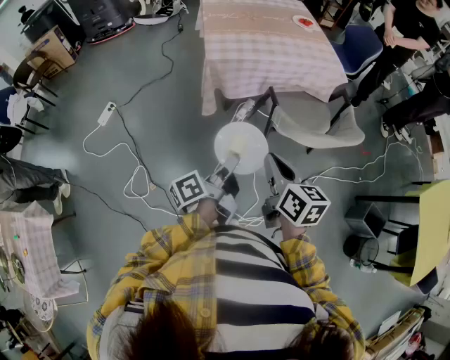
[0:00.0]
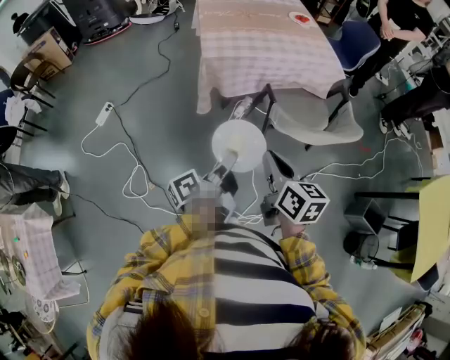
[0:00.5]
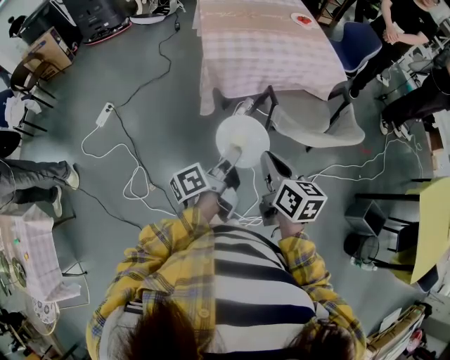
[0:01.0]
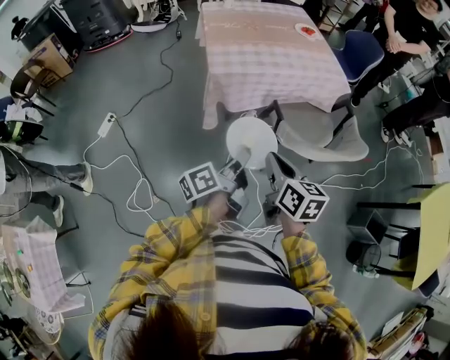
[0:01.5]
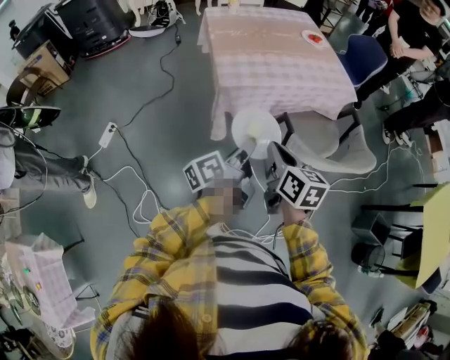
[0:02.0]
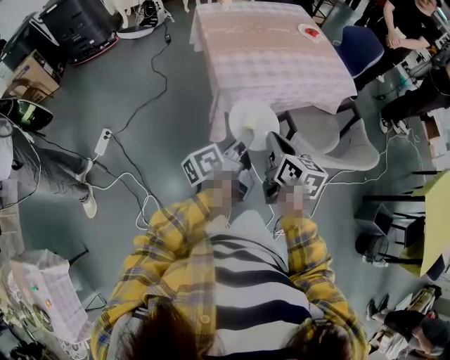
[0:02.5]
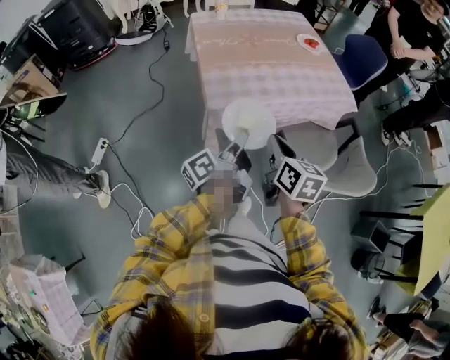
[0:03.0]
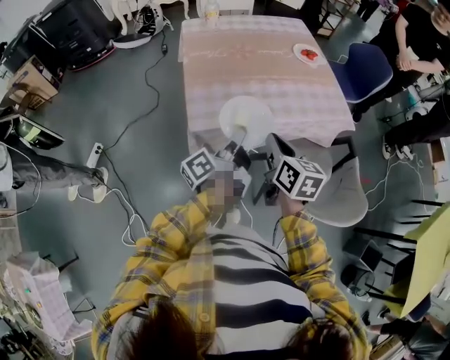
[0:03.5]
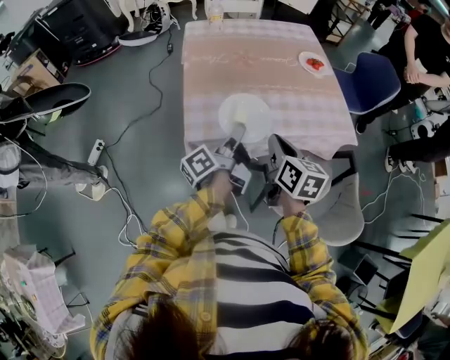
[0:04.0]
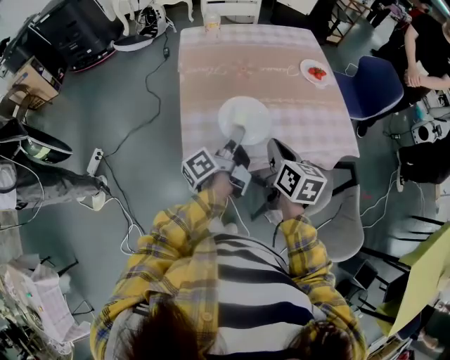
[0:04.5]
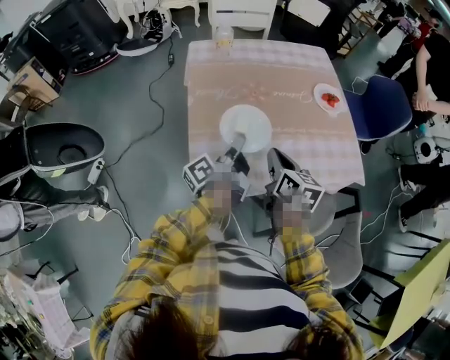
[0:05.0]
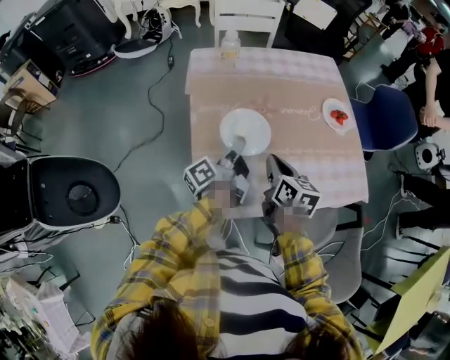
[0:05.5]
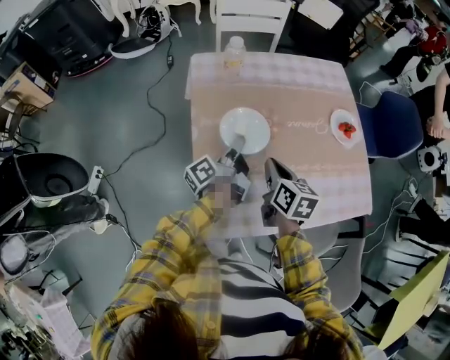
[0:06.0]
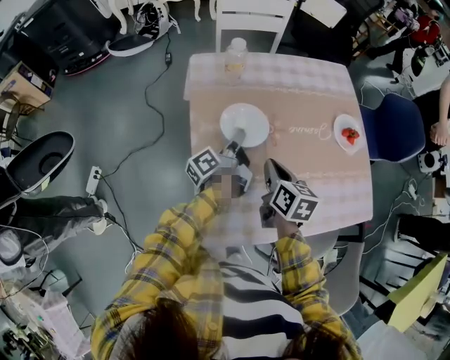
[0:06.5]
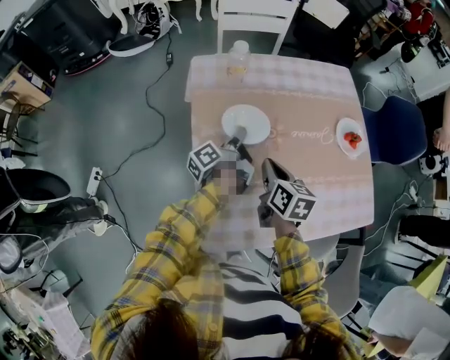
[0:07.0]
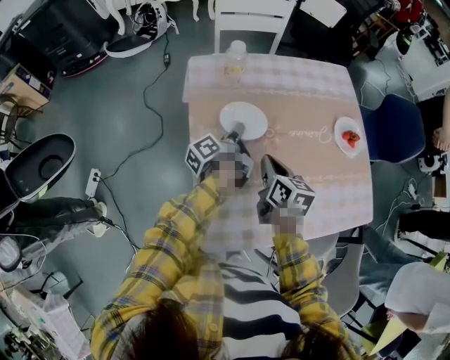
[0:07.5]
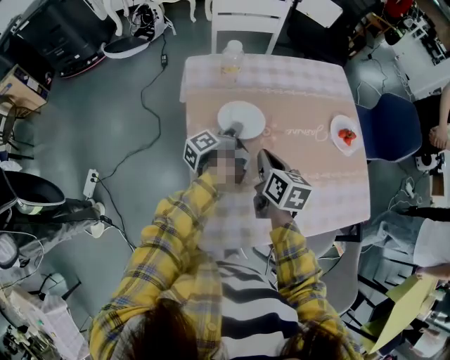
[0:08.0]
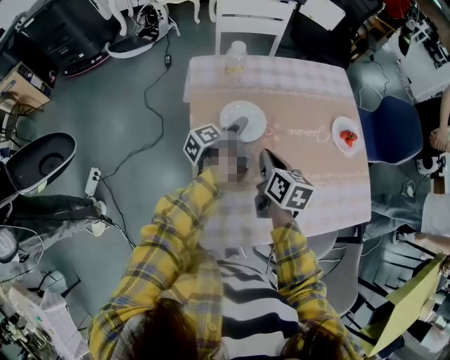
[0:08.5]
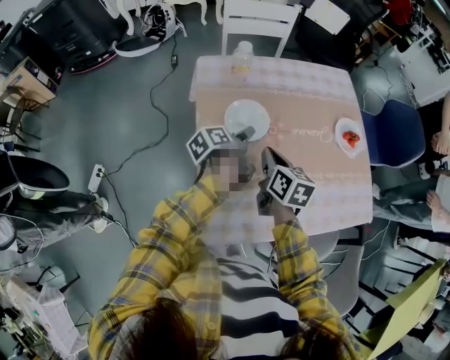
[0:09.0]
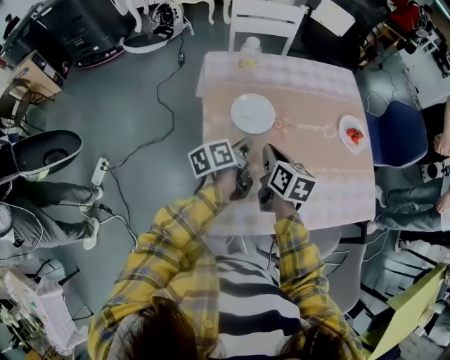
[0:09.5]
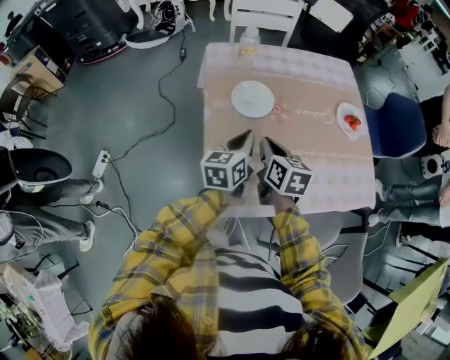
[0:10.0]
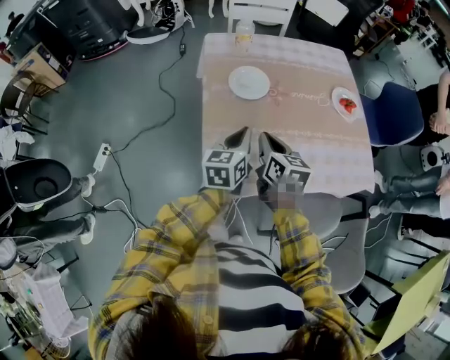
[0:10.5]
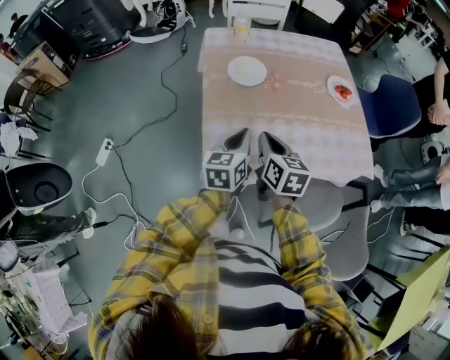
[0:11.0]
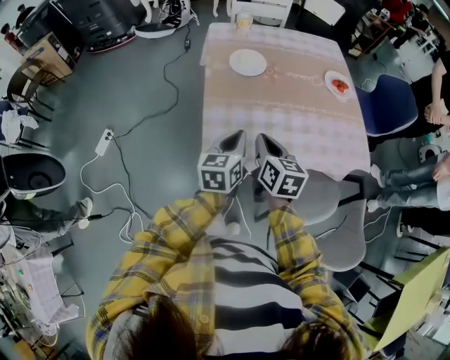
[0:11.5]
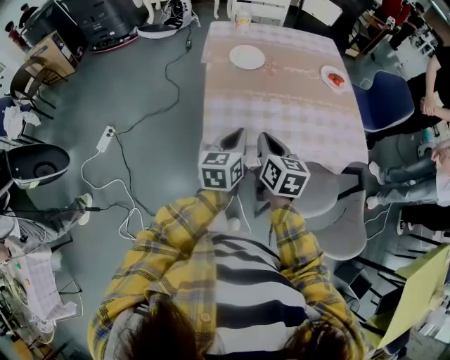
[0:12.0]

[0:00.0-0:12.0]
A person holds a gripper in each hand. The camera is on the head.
0:00.0 to 0:02.0: The right gripper shifts by roughly 15 cm.
0:02.0 to 0:04.0: The right gripper ends up roughly 30 cm from where it was.
0:04.0 to 0:06.0: The right gripper changes place by approximately 30 cm.
0:06.0 to 0:08.0: The right gripper ends up some 5 cm from where it was.
0:08.0 to 0:10.0: The right gripper moves roughly 5 cm.
0:10.0 to 0:12.0: The right gripper shifts by roughly 25 cm.

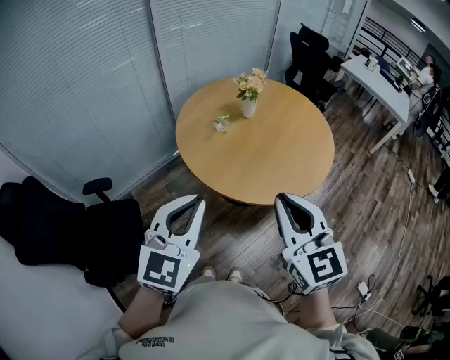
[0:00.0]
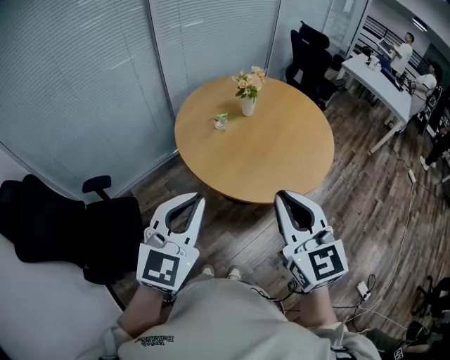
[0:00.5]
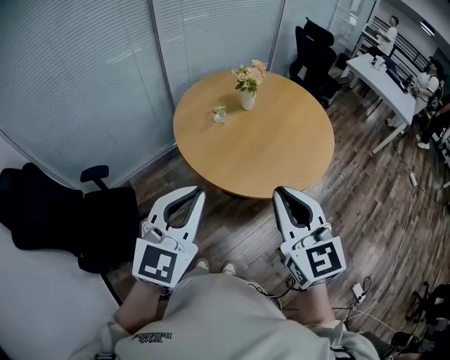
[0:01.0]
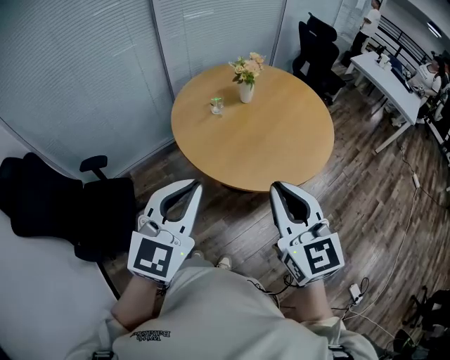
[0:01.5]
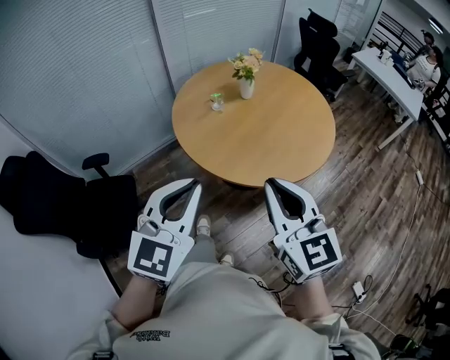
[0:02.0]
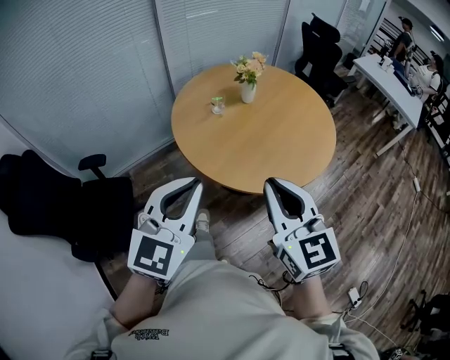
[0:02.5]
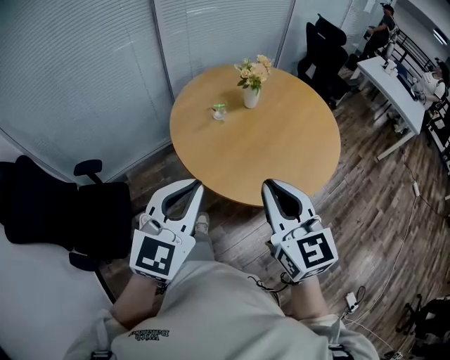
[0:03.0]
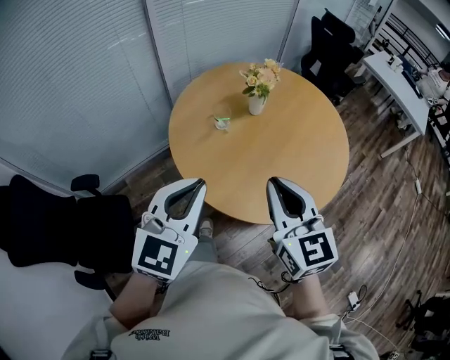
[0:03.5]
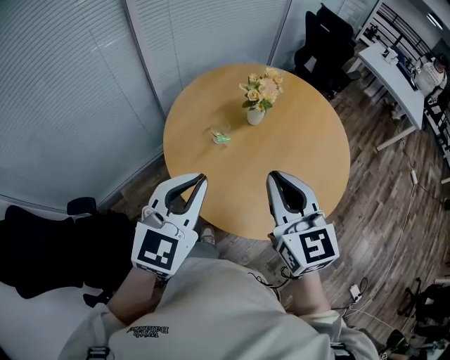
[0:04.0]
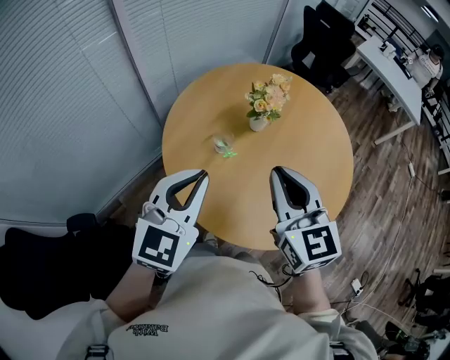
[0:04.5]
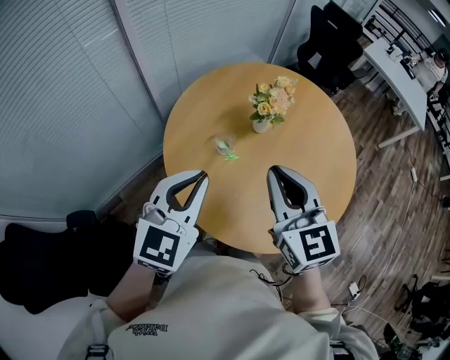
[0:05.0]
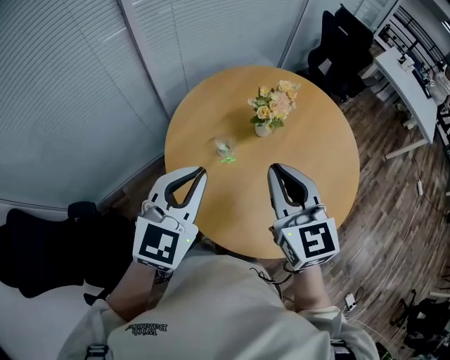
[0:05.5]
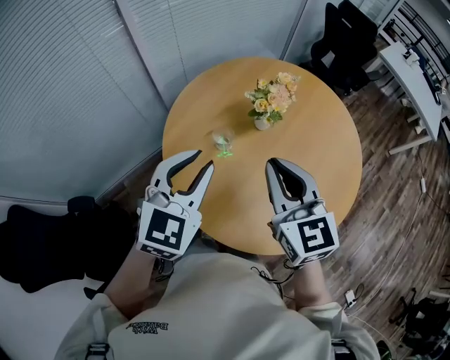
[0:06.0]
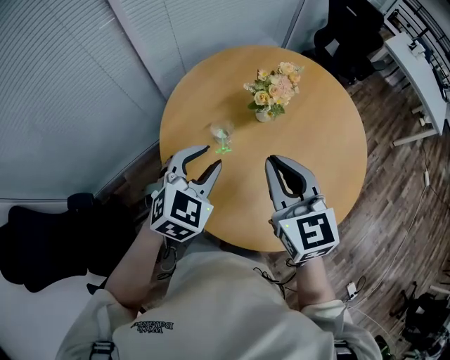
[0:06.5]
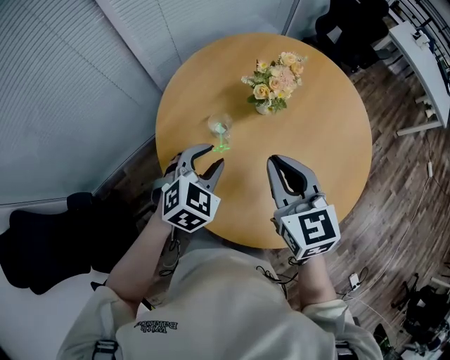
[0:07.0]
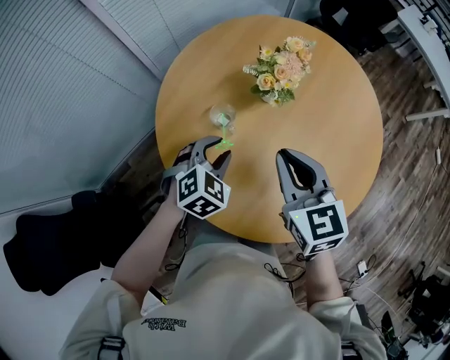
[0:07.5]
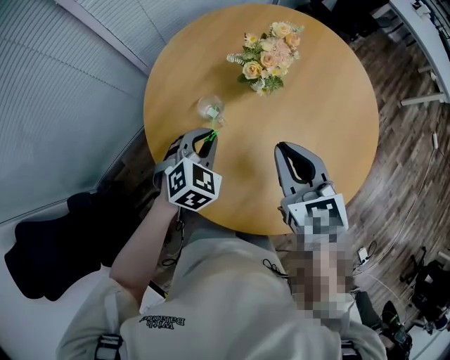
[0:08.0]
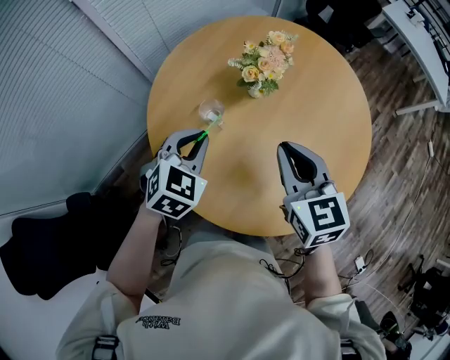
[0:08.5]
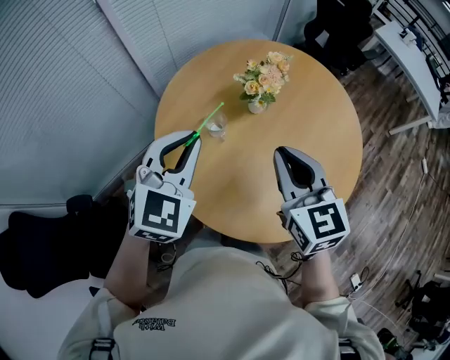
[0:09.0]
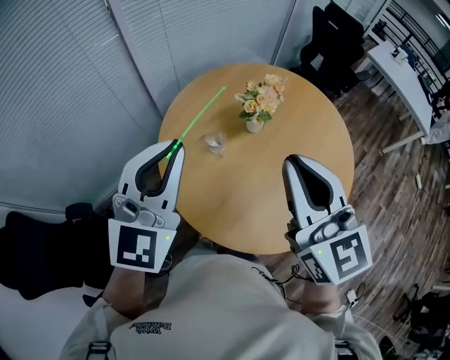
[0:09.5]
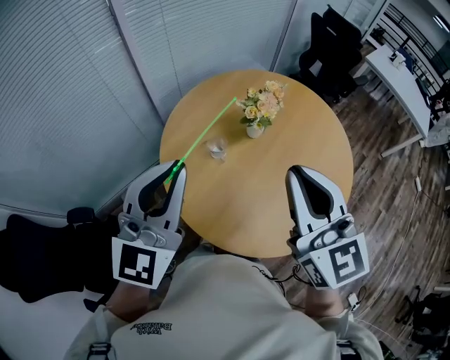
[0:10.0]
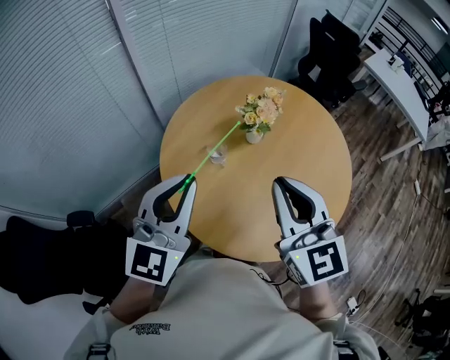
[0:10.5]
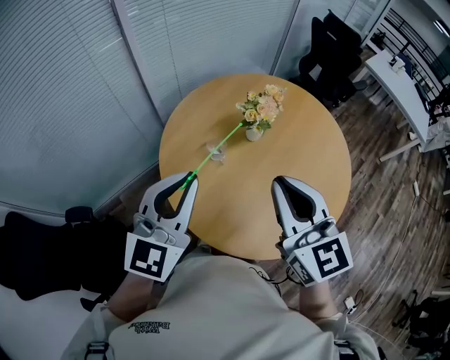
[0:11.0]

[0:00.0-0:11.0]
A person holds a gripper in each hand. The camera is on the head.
0:00.0 to 0:02.0: The grippers both shift to the right by about 5 cm.
0:02.0 to 0:03.5: The two grippers go approximately 20 cm forward.
0:03.5 to 0:05.5: The grippers both shift forward by approximately 20 cm.
0:05.5 to 0:07.5: The right gripper shifts about 15 cm downward and forward, while the left gripper travels downward by some 25 cm, tips its fingers downward by about 30 degrees, and opens up.
0:07.5 to 0:09.0: The right gripper moves upward, roughly 10 cm. The left gripper heads upward, covering some 20 cm, changes its angle by some 30 degrees, and closes.
0:09.0 to 0:11.0: The right gripper travels upward and backward by approximately 10 cm. The left gripper travels backward and upward by about 10 cm, and rotates some 30 degrees.

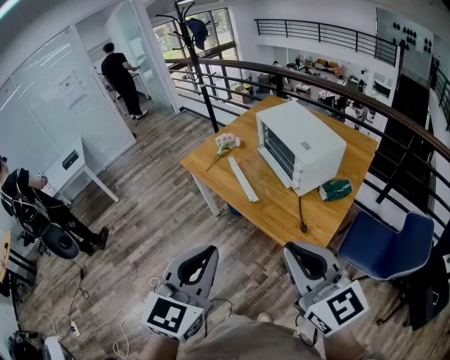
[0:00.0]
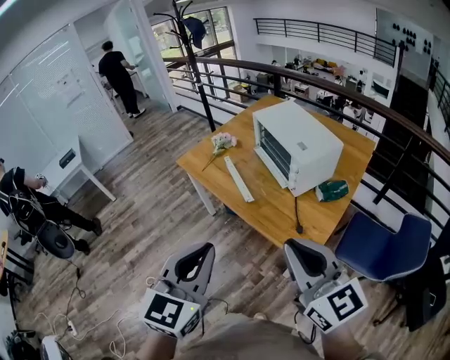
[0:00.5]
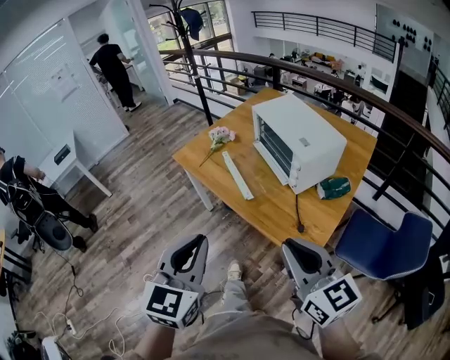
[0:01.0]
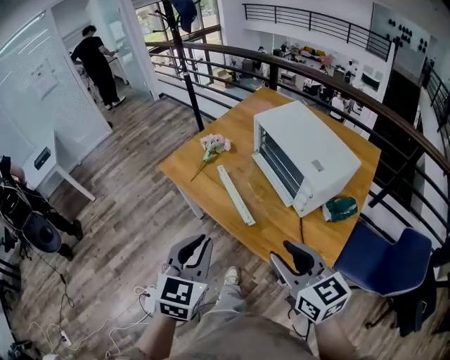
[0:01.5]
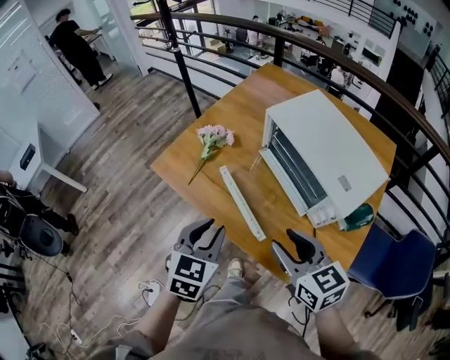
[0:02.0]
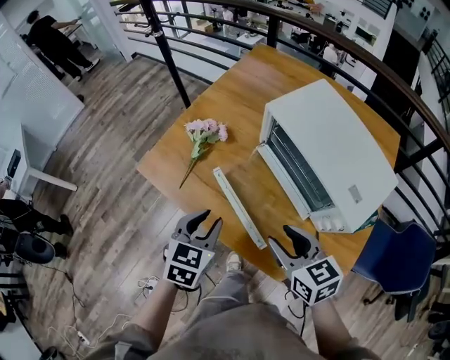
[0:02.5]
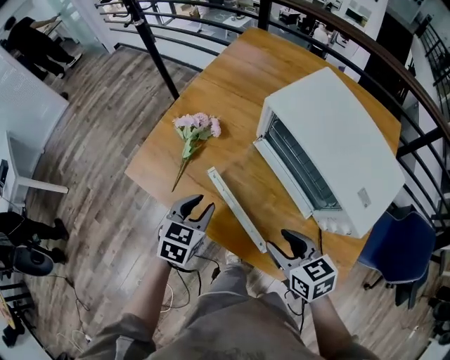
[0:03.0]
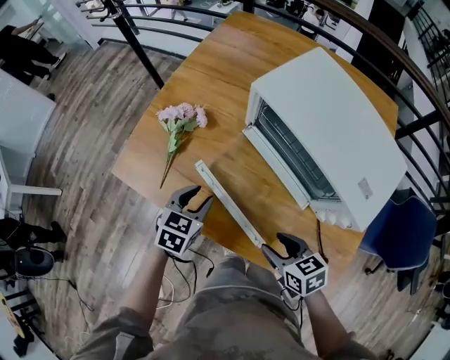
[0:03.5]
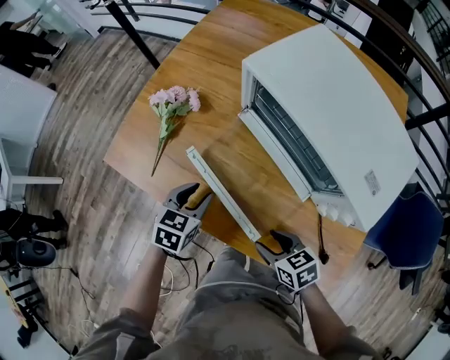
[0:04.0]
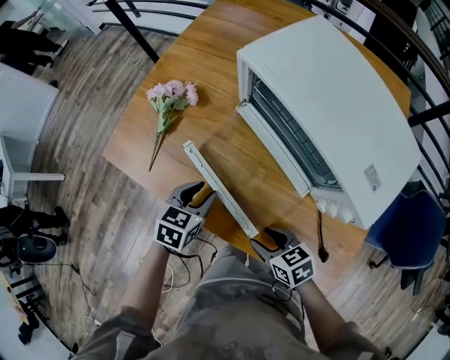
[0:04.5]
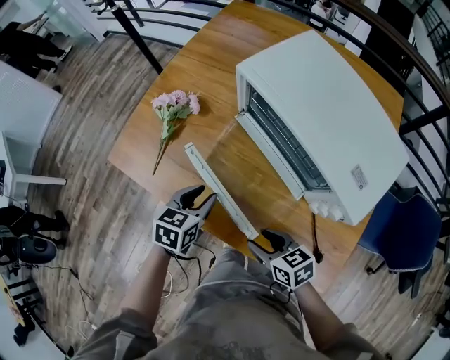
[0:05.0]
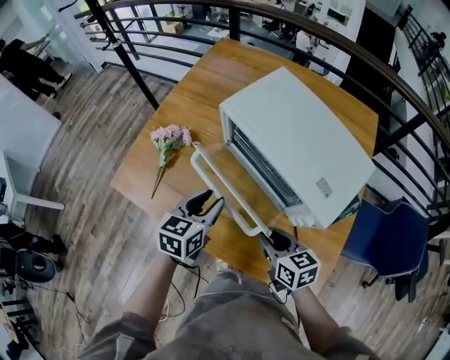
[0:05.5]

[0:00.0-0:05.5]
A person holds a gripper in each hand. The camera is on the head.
0:00.0 to 0:02.0: Both grippers move forward and downward, some 40 cm. The left gripper rotates approximately 20 degrees, and opens its fingers, while the right gripper swivels some 30 degrees, and opens up.
0:02.0 to 0:03.5: The right gripper heads downward, covering some 20 cm, and turns by about 30 degrees; the left gripper shifts approximately 25 cm downward and forward, and turns by some 20 degrees.
0:03.5 to 0:05.5: The right gripper changes place by about 5 cm, and closes its fingers. The left gripper heads to the right and upward, covering roughly 10 cm.
